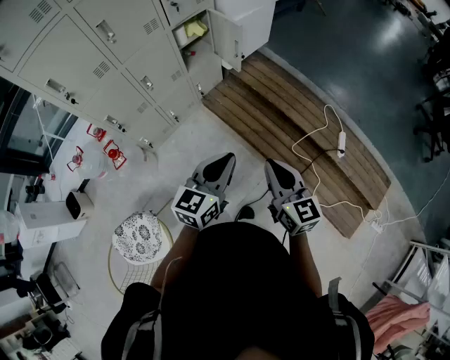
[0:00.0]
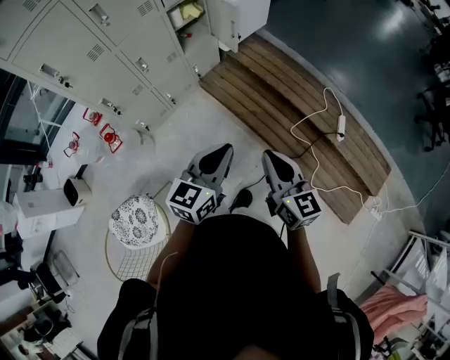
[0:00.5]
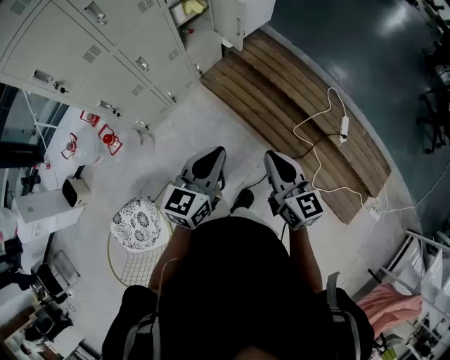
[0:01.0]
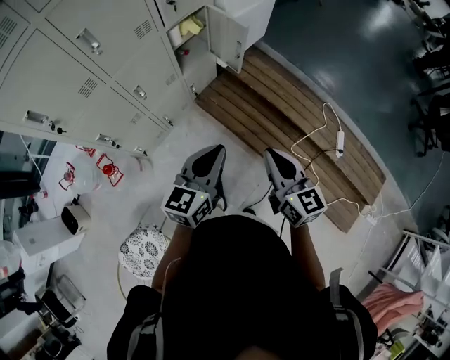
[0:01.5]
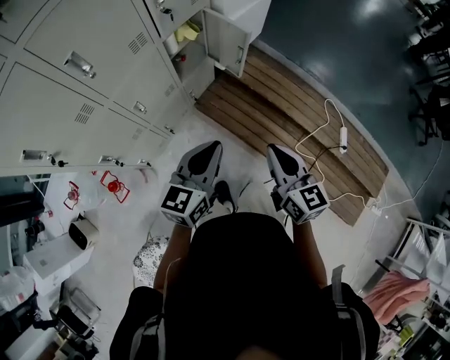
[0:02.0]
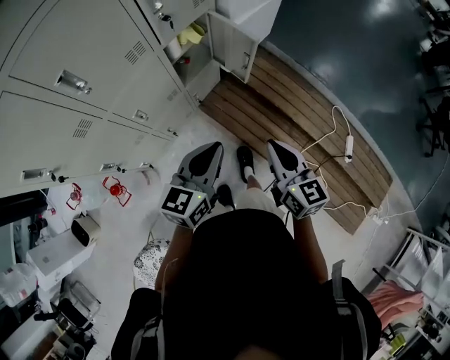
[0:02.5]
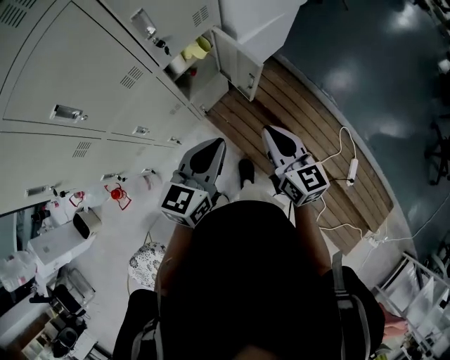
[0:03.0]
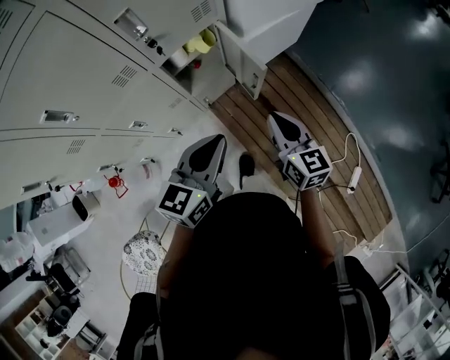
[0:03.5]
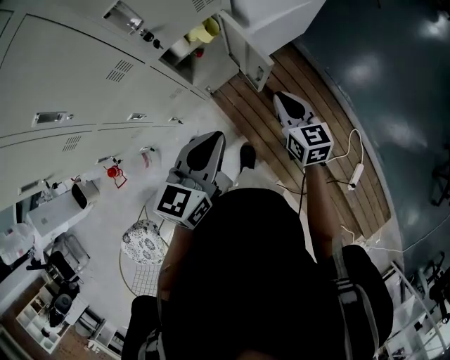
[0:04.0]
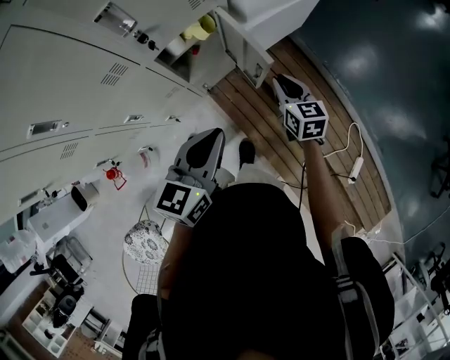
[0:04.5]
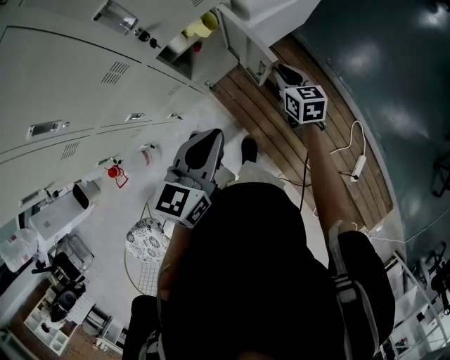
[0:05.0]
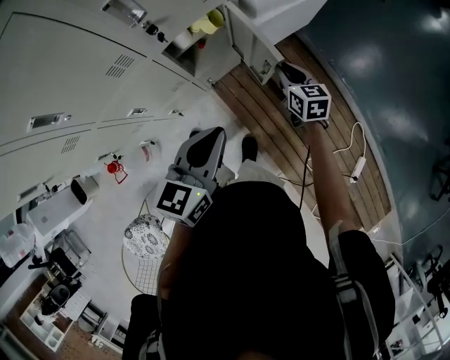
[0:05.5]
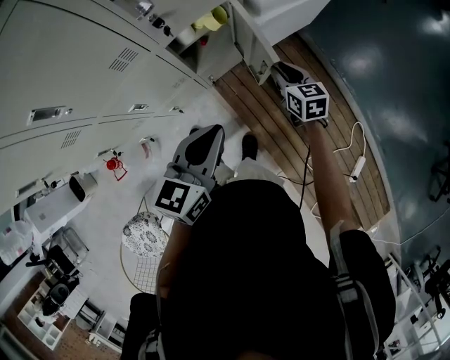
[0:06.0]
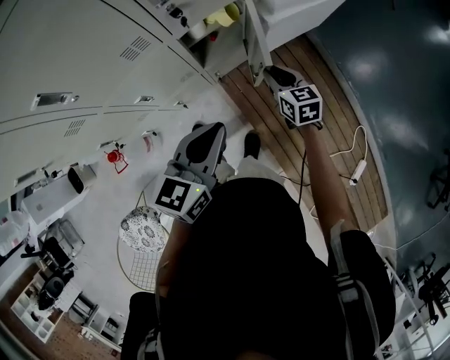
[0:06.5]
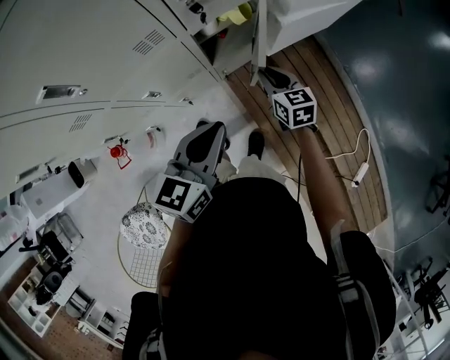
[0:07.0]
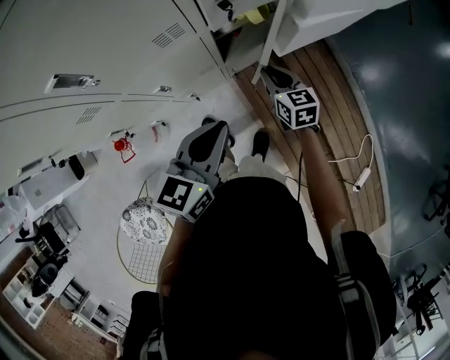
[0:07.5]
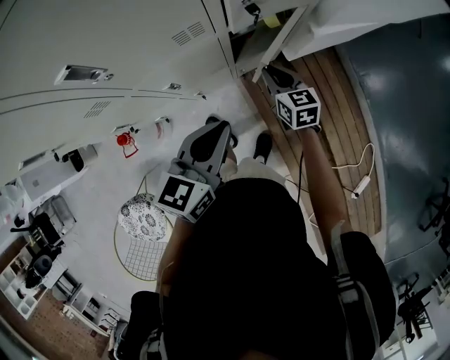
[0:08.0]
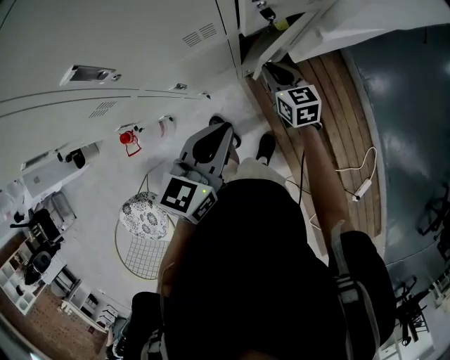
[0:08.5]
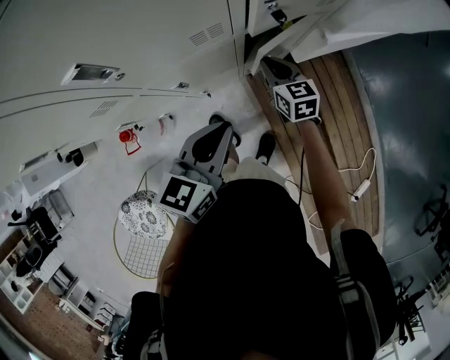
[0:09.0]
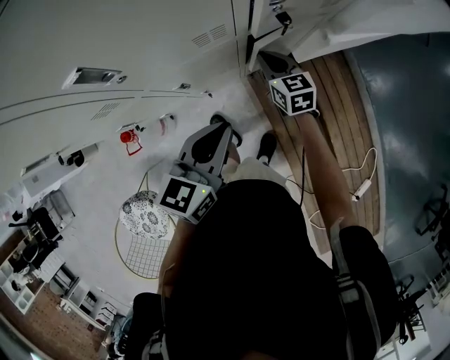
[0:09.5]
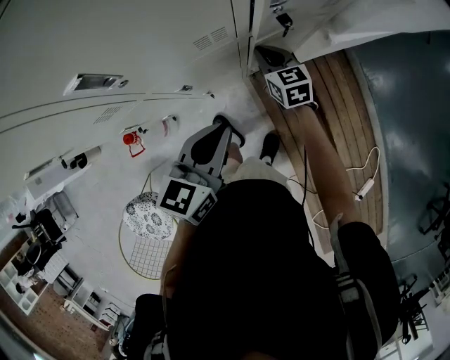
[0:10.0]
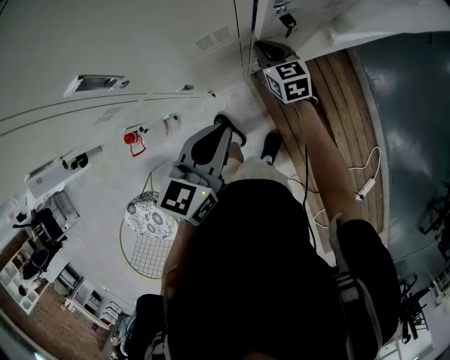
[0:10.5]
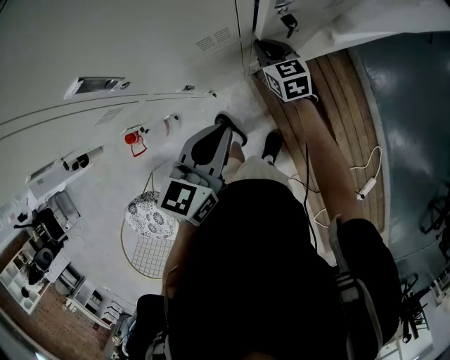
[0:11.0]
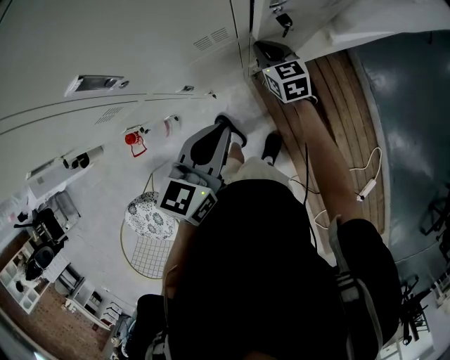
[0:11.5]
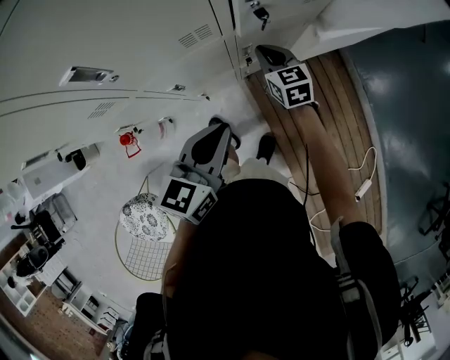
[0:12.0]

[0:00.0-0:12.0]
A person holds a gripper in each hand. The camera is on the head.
0:00.0 to 0:02.0: The two grippers go approximately 25 cm forward and to the left.
0:02.0 to 0:04.0: The left gripper travels forward by roughly 25 cm. The right gripper heads forward, covering some 40 cm.
0:04.0 to 0:06.0: The right gripper heads forward and downward, covering about 10 cm.
0:06.0 to 0:08.0: The right gripper shifts some 20 cm to the left. The left gripper moves to the left, approximately 15 cm.
0:08.0 to 0:10.0: The left gripper moves roughly 5 cm. Meanwhile the right gripper goes roughly 10 cm forward and to the left.
0:10.0 to 0:12.0: There are only small adjustments of the grippers.

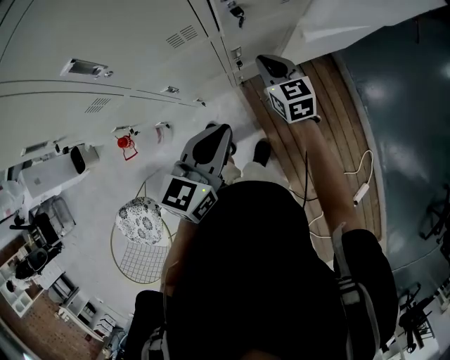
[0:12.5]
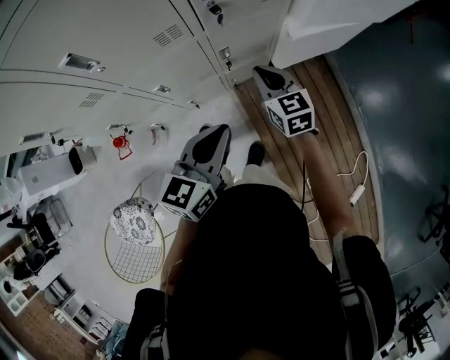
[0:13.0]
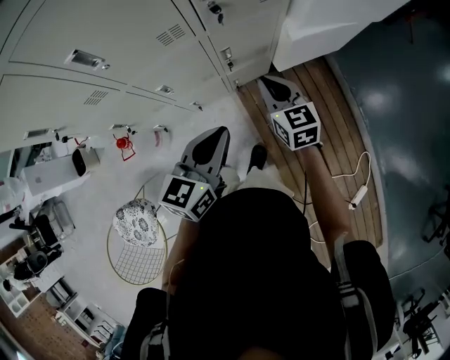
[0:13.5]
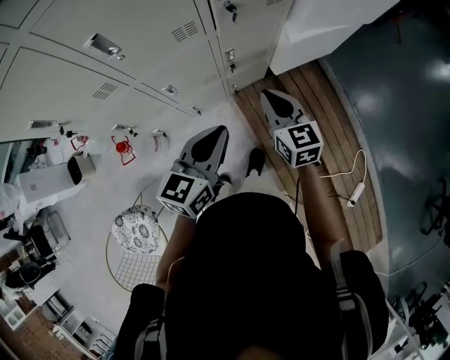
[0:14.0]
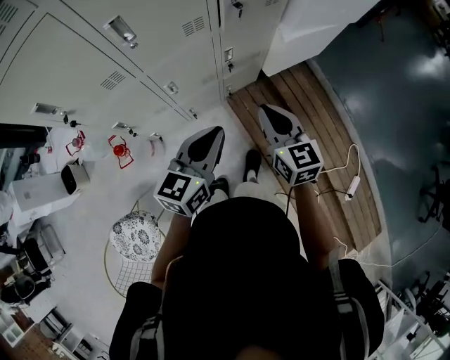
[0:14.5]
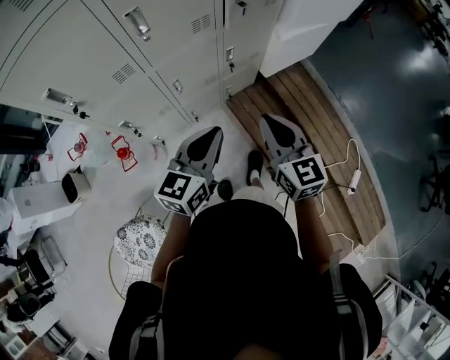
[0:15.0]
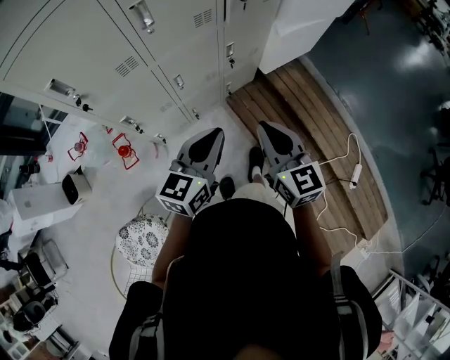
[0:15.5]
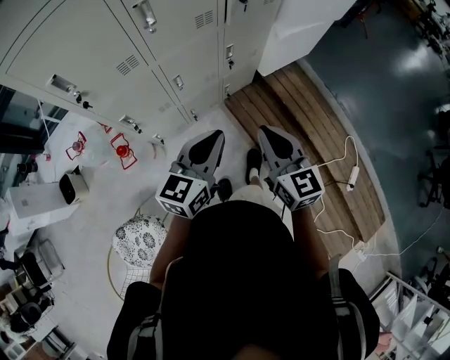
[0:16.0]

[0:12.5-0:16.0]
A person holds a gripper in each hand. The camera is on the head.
0:12.5 to 0:14.5: The left gripper moves backward, about 10 cm, while the right gripper travels backward and upward by some 25 cm.
0:14.5 to 0:16.0: The right gripper moves backward, approximately 15 cm. The left gripper shifts about 10 cm backward.

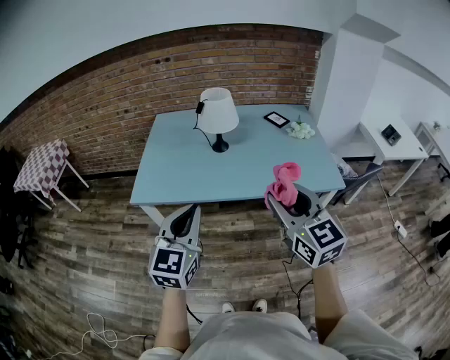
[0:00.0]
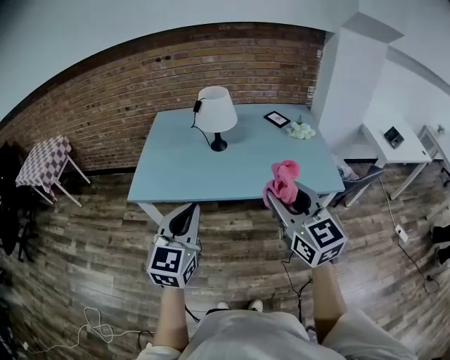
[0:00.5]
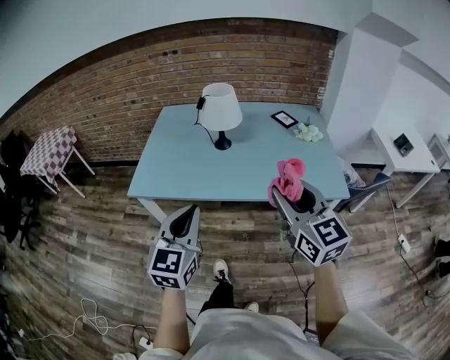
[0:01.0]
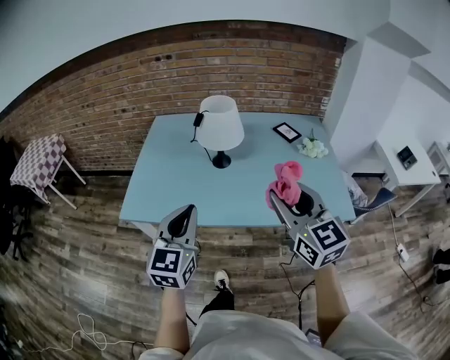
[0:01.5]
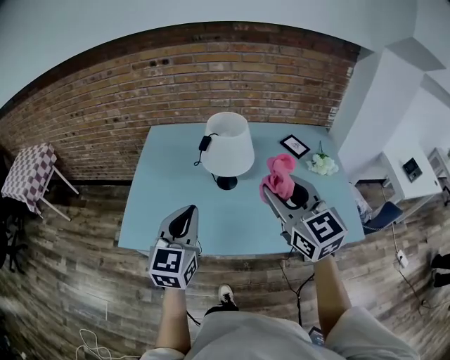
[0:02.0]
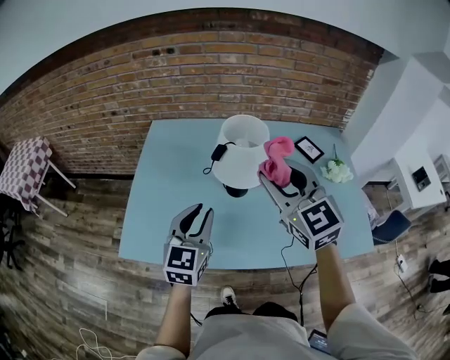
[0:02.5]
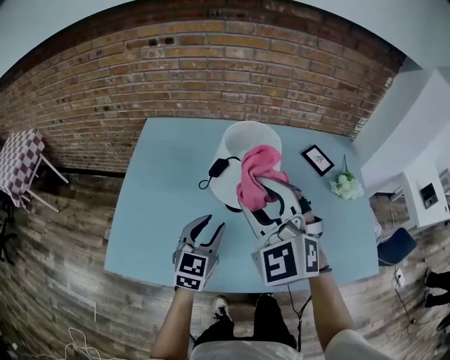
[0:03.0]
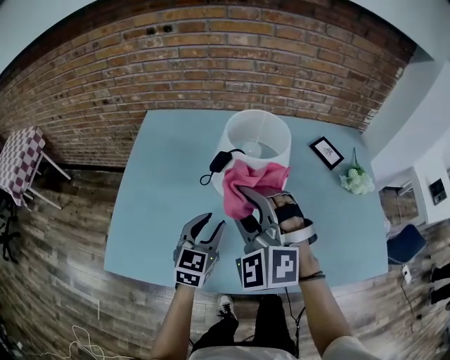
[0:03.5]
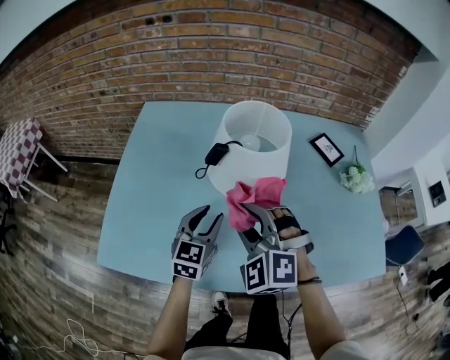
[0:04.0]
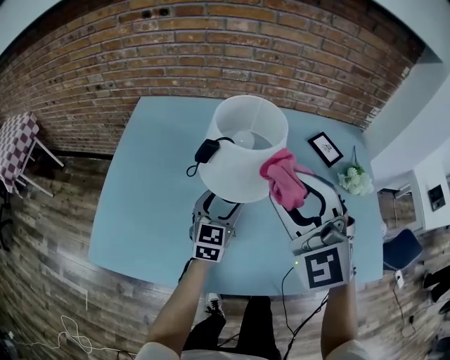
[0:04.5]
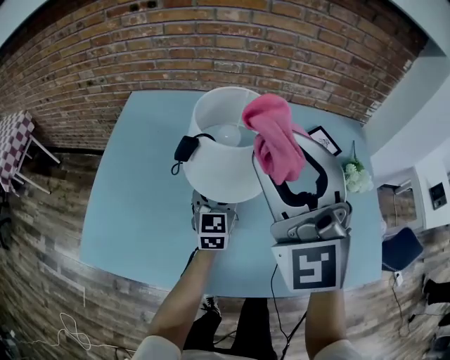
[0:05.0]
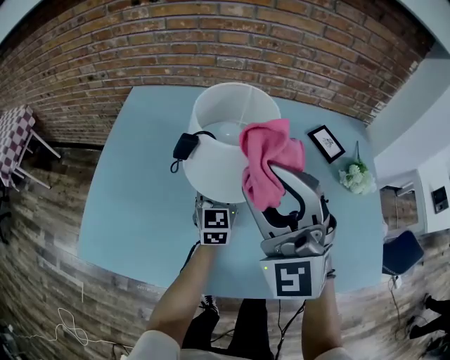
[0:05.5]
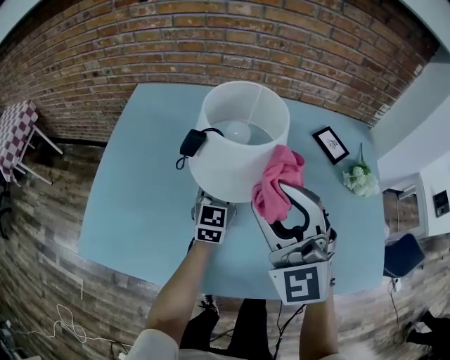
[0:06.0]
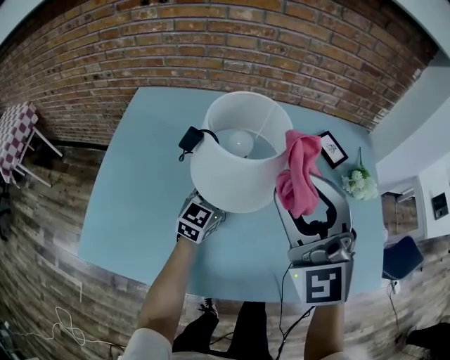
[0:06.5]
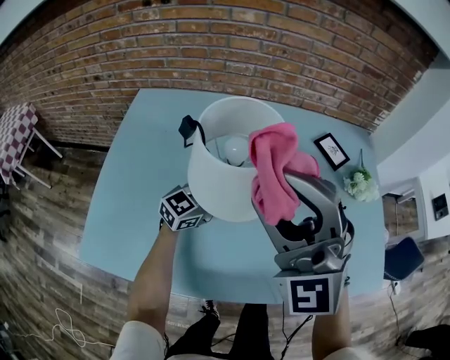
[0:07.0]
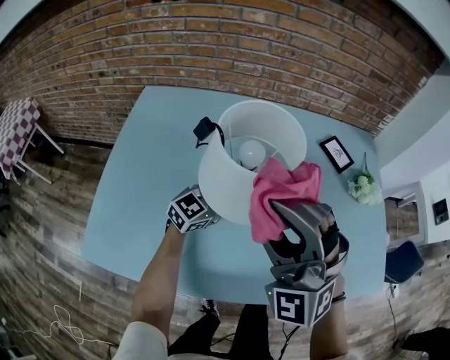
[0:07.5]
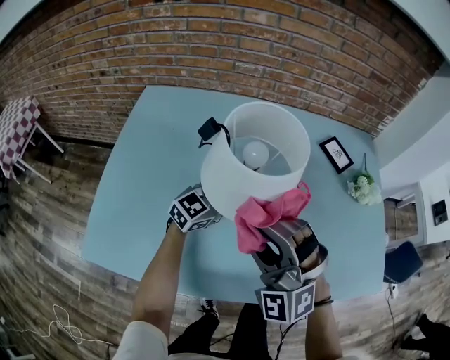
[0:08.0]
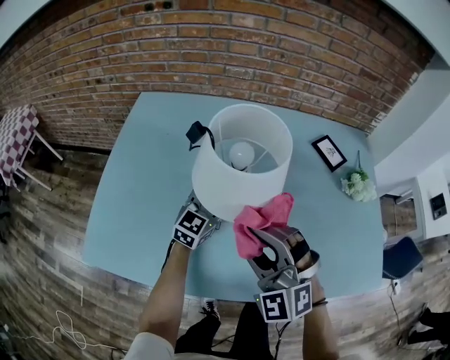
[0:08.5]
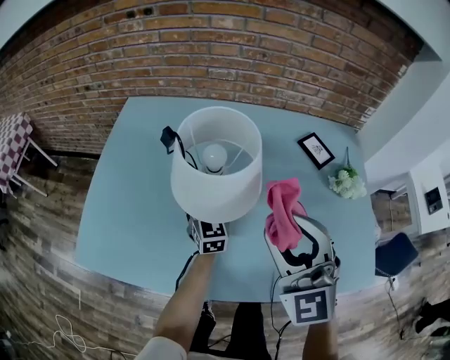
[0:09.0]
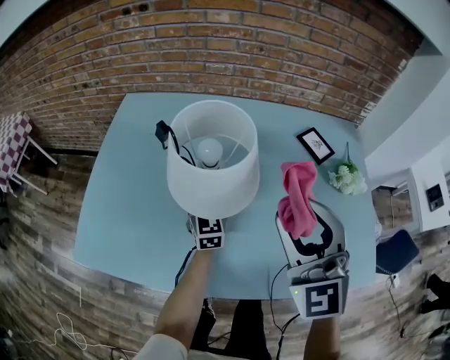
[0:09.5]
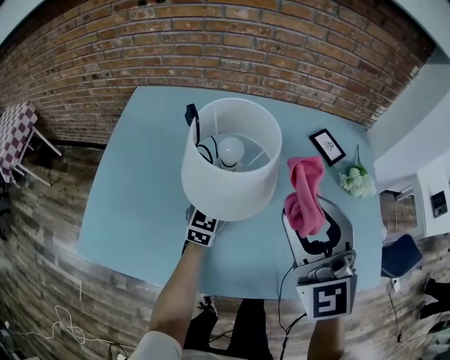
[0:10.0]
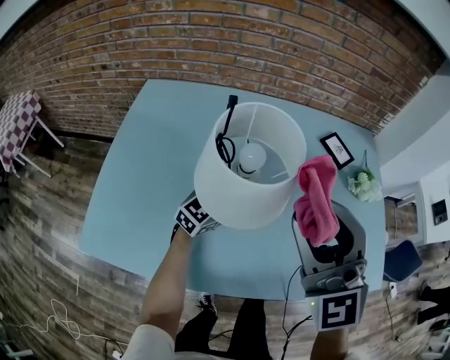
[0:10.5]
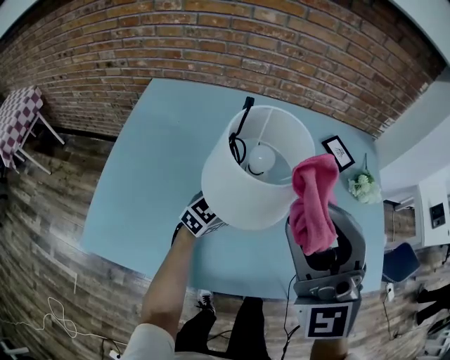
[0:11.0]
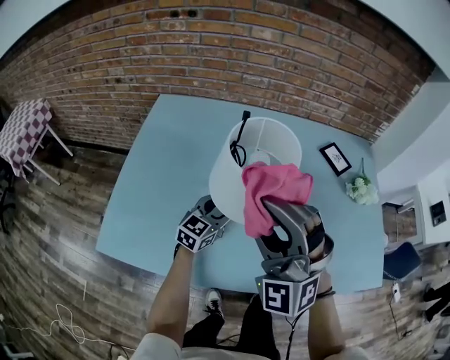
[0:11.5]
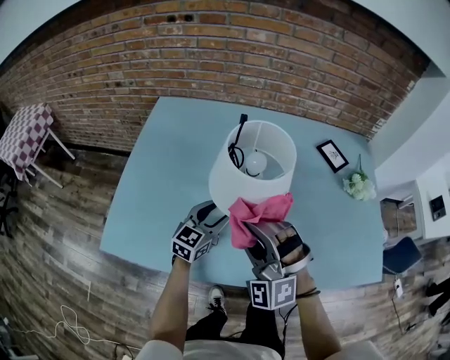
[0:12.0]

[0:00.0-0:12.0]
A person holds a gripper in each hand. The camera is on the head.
0:00.0 to 0:02.0: The two grippers go about 30 cm forward.
0:02.0 to 0:04.0: The left gripper shifts roughly 30 cm downward and forward, and opens its fingers, while the right gripper shifts some 30 cm downward, forward and to the left, and twists some 50 degrees counterclockwise, seen from behind.
0:04.0 to 0:06.0: The right gripper travels upward and to the right by about 10 cm, and swivels some 30 degrees, while the left gripper travels forward and to the right by about 15 cm, and opens, then closes again.
0:06.0 to 0:08.0: The right gripper travels downward by approximately 5 cm, and rotates about 30 degrees, while the left gripper changes its angle by approximately 40 degrees.
0:08.0 to 0:10.0: The left gripper rotates roughly 30 degrees, while the right gripper is displaced upward by roughly 10 cm, and turns by about 30 degrees.
0:10.0 to 0:12.0: The left gripper moves backward and to the left, about 10 cm. The right gripper goes approximately 20 cm to the left, downward and backward, and turns by about 40 degrees.
